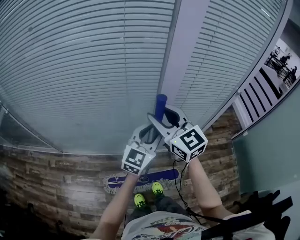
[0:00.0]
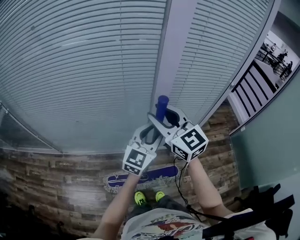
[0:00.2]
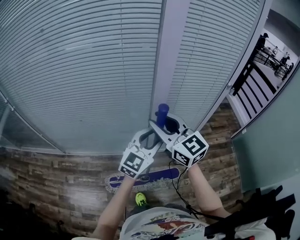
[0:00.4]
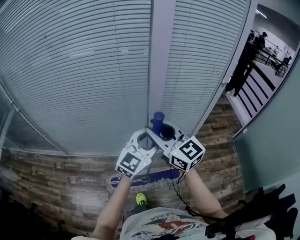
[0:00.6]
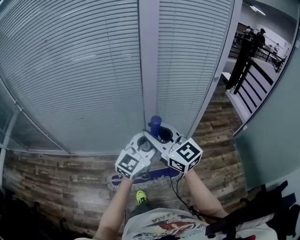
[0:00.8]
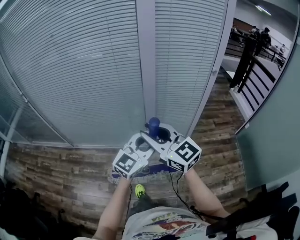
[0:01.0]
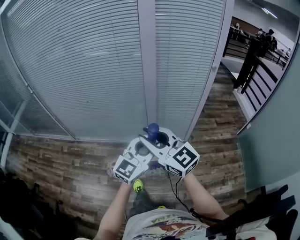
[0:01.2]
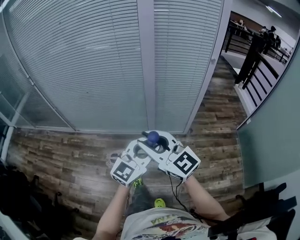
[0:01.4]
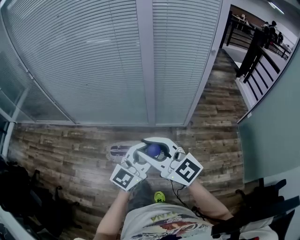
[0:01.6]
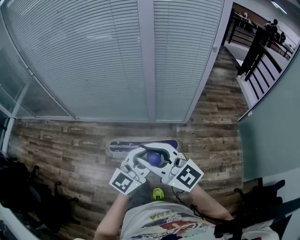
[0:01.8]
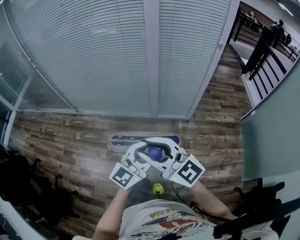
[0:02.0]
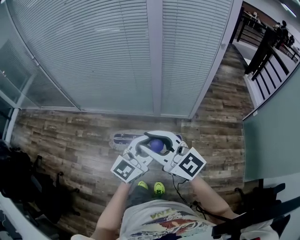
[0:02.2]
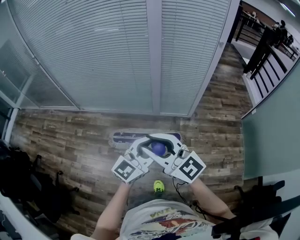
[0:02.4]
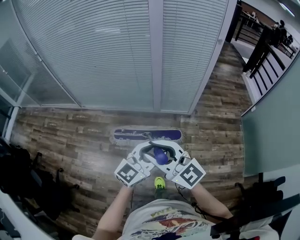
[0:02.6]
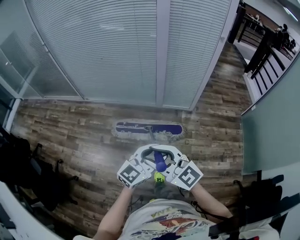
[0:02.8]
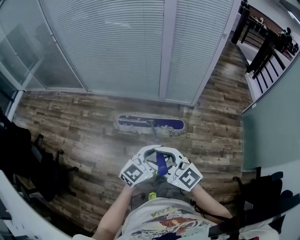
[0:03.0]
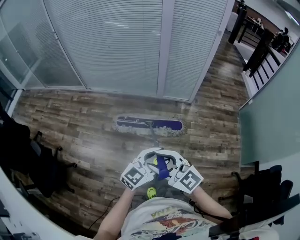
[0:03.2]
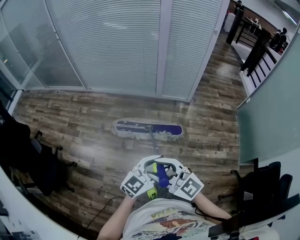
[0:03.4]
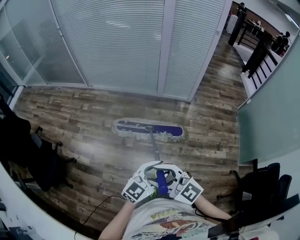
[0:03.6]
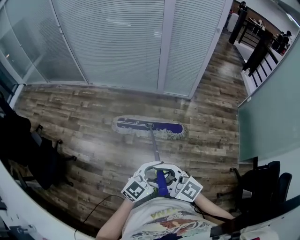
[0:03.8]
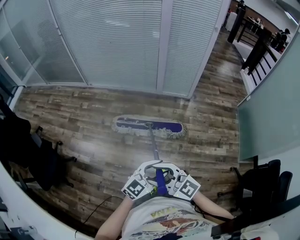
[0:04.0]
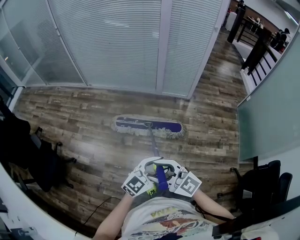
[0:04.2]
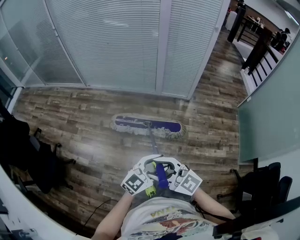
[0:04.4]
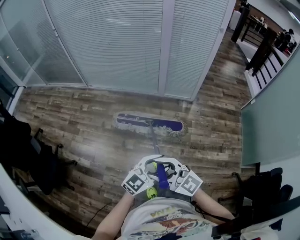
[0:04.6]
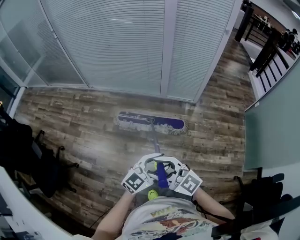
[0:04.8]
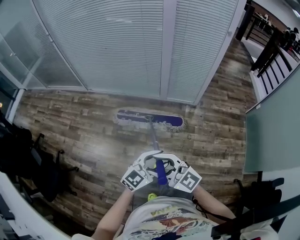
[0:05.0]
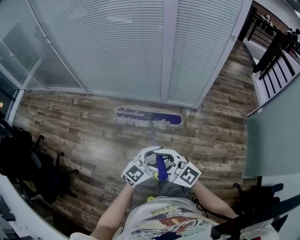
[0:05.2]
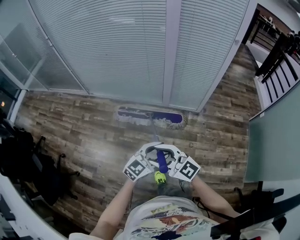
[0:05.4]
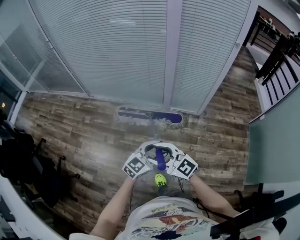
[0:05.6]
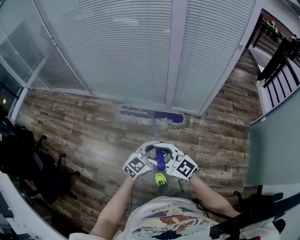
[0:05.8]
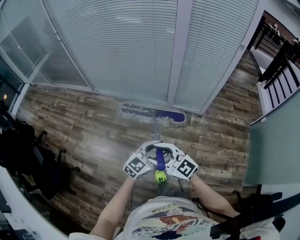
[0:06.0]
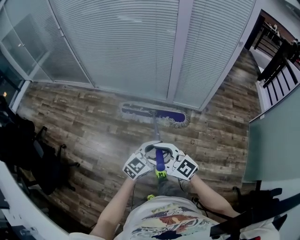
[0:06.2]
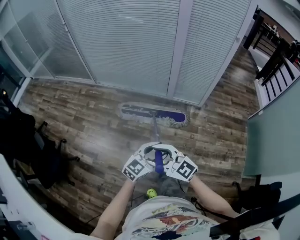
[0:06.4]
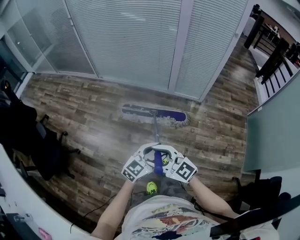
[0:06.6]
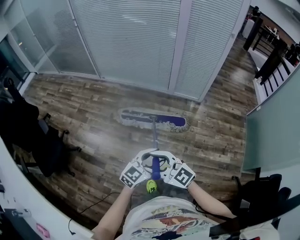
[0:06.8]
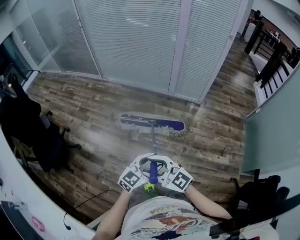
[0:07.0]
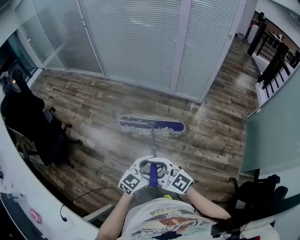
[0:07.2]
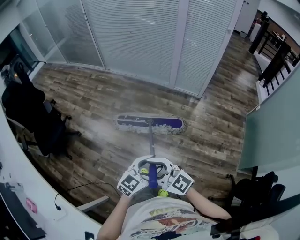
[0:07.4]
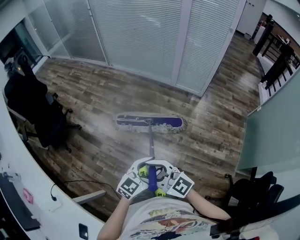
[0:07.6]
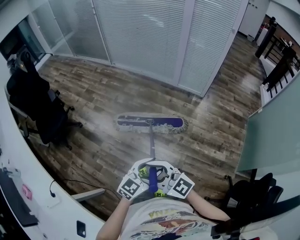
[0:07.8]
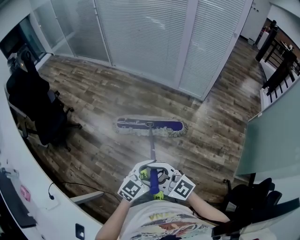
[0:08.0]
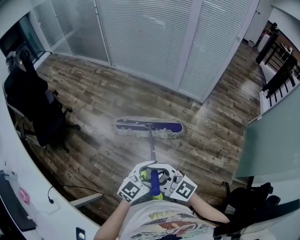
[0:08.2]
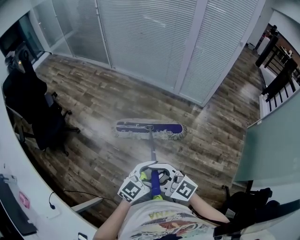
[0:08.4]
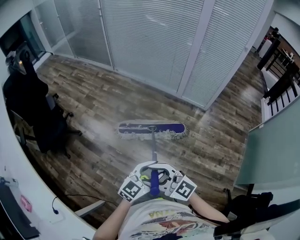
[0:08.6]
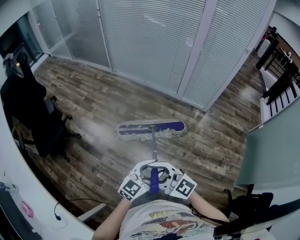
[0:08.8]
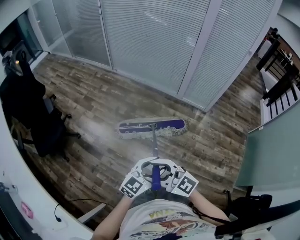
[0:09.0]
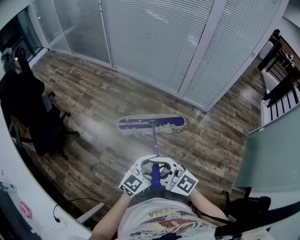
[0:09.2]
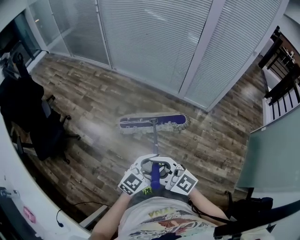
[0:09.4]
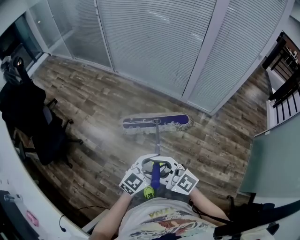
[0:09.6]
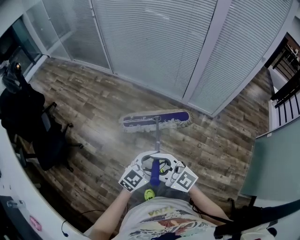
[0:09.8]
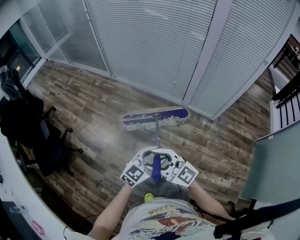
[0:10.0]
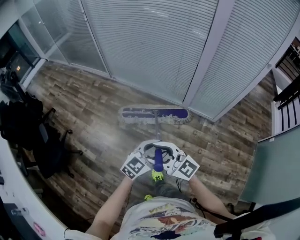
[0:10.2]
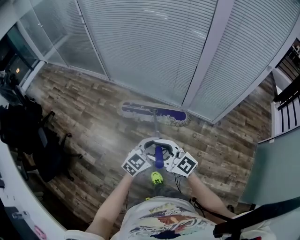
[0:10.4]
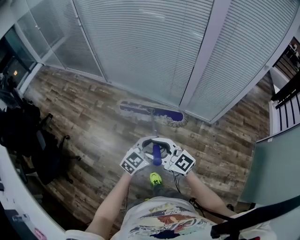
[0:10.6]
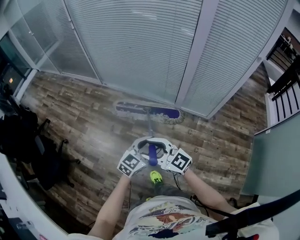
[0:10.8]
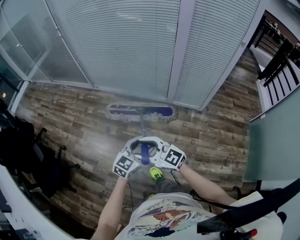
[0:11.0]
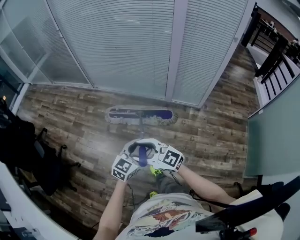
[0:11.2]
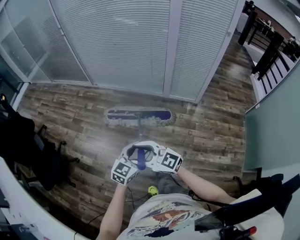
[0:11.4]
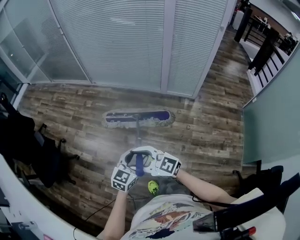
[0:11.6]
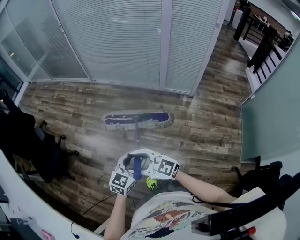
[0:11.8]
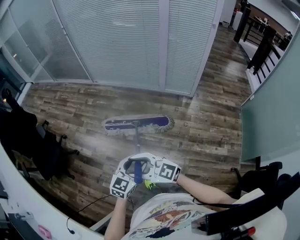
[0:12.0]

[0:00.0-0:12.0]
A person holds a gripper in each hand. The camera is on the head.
0:00.0 to 0:01.6: The pair of grippers is taken backward, approximately 50 cm. The right gripper rotates roughly 30 degrees.
0:01.6 to 0:03.0: The left gripper shifts some 30 cm backward, while the right gripper shifts roughly 35 cm backward and downward.
0:03.0 to 0:04.4: Both grippers travel together backward, approximately 15 cm.
0:04.4 to 0:06.0: Both grippers travel together forward, roughly 30 cm.
0:06.0 to 0:07.6: Both grippers are carried backward, some 60 cm.
0:07.6 to 0:09.0: Both grippers move forward, roughly 20 cm.
0:09.0 to 0:10.4: The pair of grippers is taken forward, about 40 cm.
0:10.4 to 0:12.0: The pair of grippers is taken backward, about 50 cm.

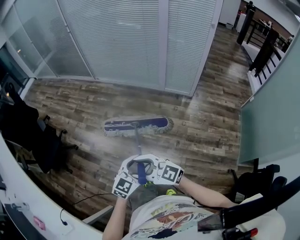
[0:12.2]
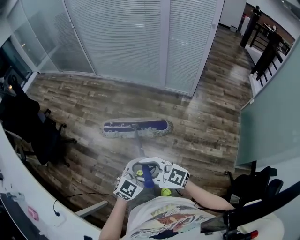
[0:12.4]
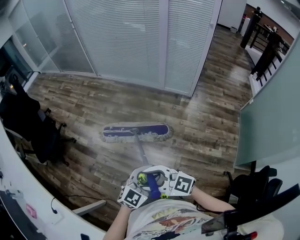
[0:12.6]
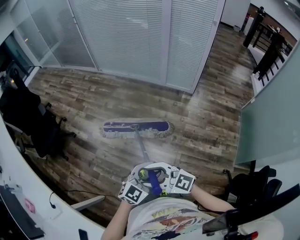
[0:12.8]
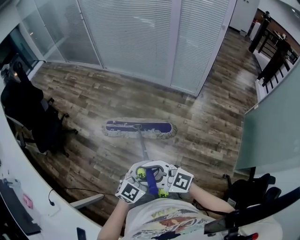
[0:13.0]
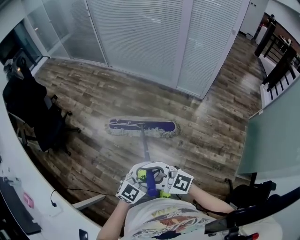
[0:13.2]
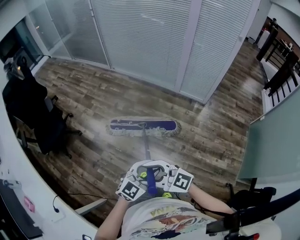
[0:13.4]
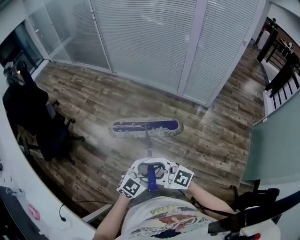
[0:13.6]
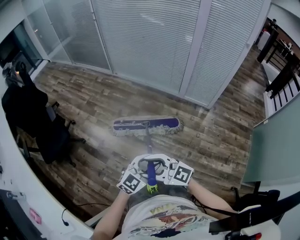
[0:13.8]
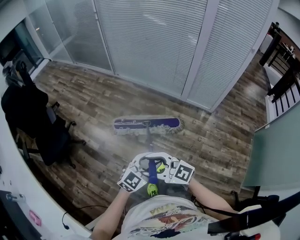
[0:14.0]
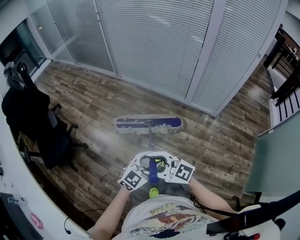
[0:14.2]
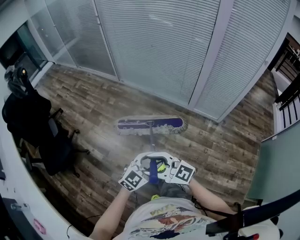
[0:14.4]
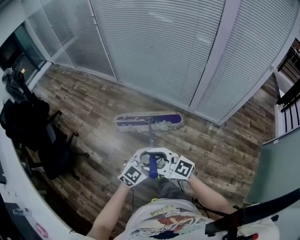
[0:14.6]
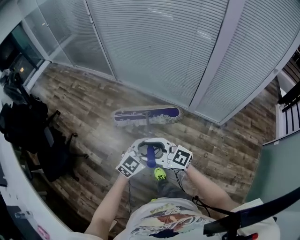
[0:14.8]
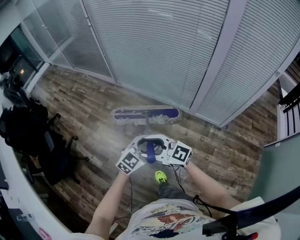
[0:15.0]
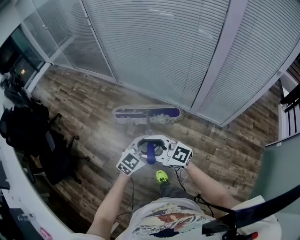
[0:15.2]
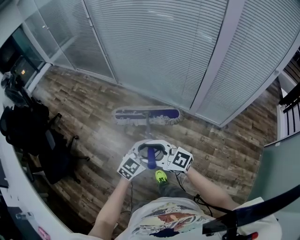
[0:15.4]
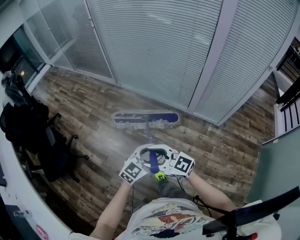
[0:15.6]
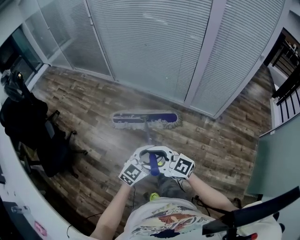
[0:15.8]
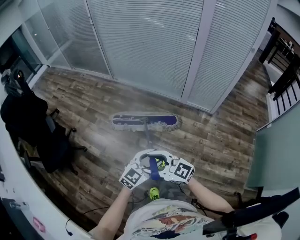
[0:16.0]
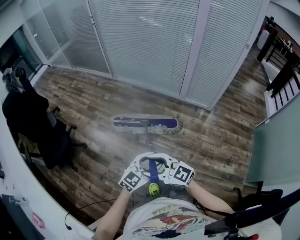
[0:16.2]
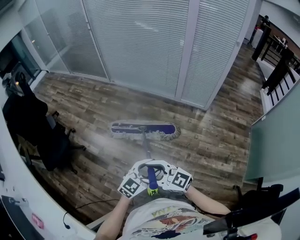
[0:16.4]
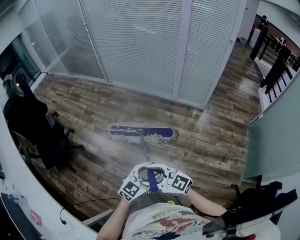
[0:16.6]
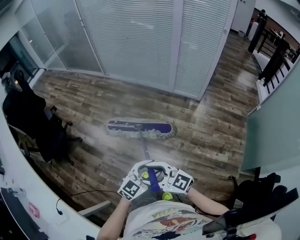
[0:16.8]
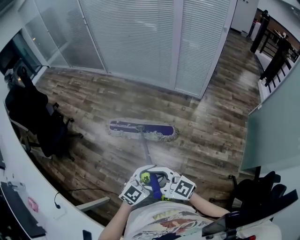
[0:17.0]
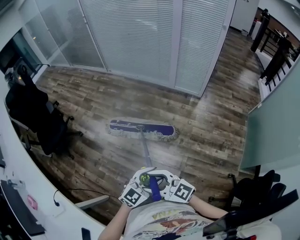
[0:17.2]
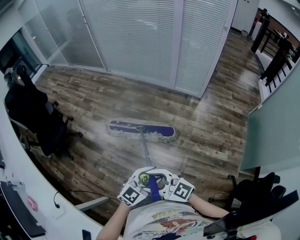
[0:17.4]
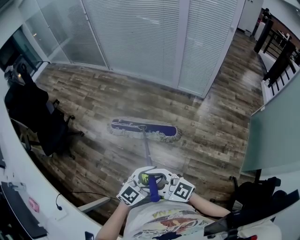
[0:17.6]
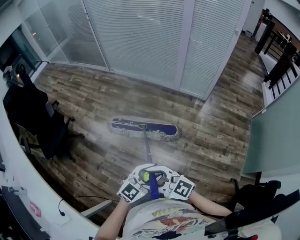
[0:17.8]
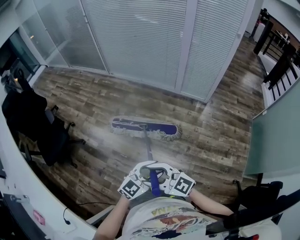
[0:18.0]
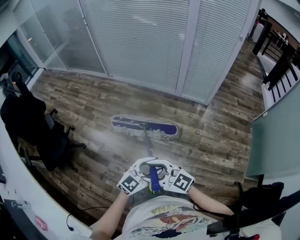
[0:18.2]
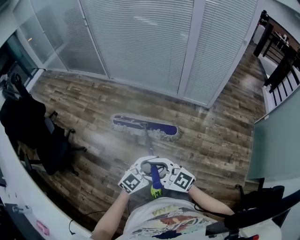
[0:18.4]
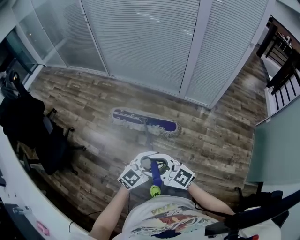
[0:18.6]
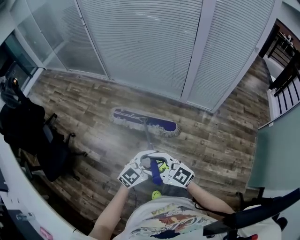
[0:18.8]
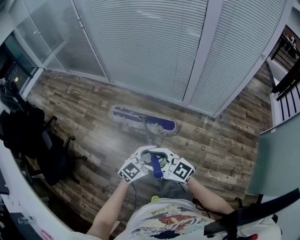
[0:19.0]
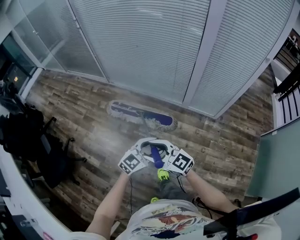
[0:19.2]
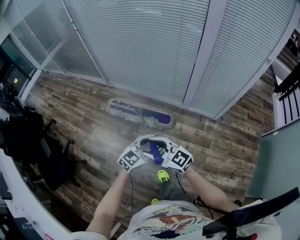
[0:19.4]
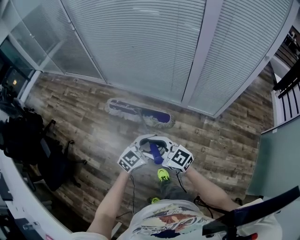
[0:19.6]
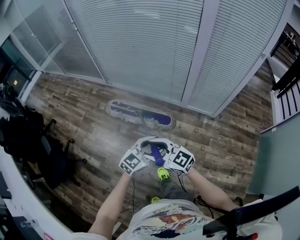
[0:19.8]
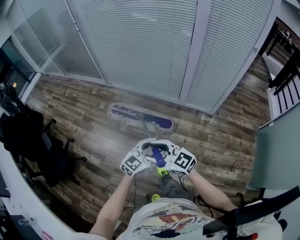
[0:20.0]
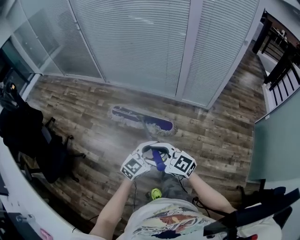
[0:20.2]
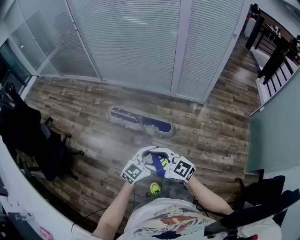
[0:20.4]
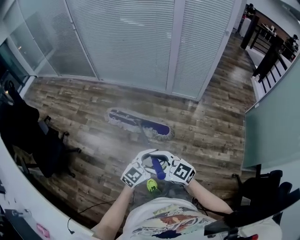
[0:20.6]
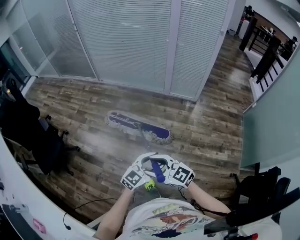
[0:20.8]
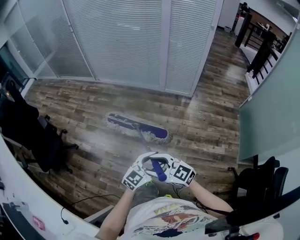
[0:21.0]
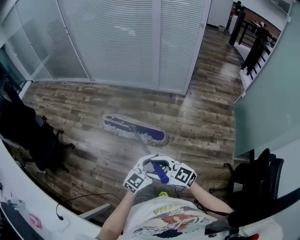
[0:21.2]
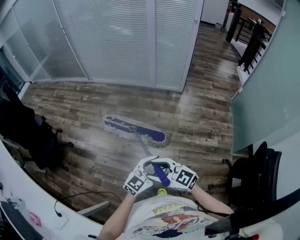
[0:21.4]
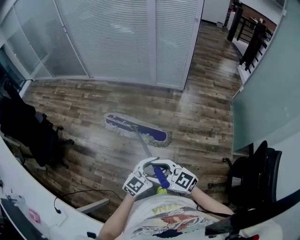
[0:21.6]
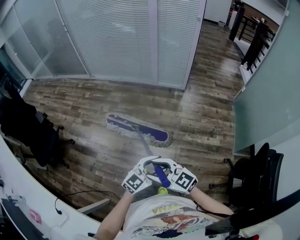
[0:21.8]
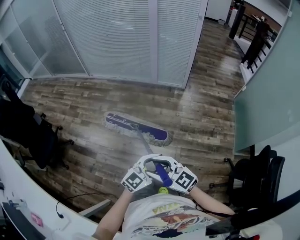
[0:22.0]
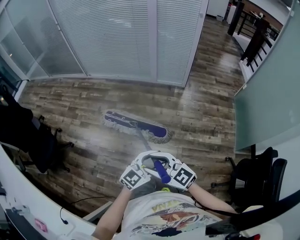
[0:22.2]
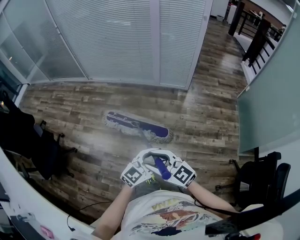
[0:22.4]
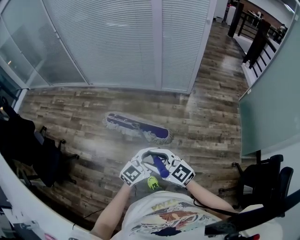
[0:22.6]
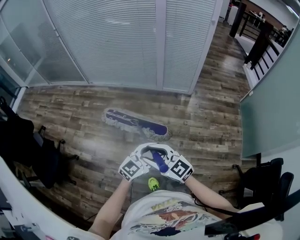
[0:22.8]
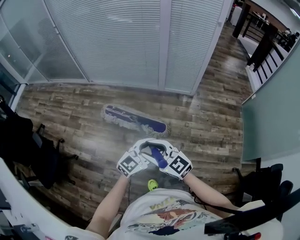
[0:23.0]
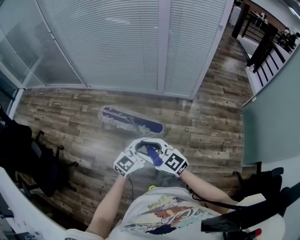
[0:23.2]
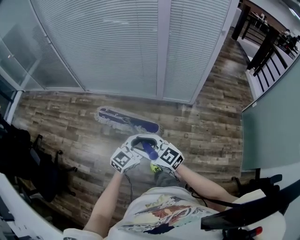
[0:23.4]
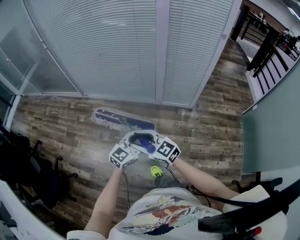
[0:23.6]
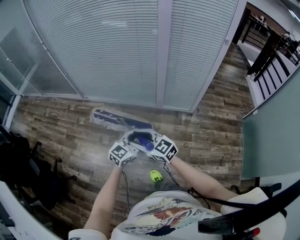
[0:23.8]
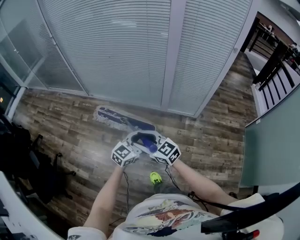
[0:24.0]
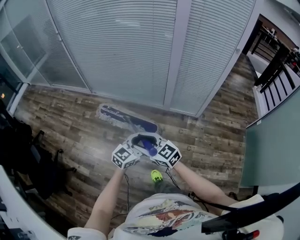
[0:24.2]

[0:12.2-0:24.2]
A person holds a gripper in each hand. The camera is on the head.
0:12.2 to 0:13.8: The left gripper moves approximately 15 cm, while the right gripper moves approximately 15 cm.
0:13.8 to 0:15.2: Both grippers are carried approximately 50 cm.
0:15.2 to 0:16.6: Both grippers are carried backward, some 60 cm.
0:18.2 to 0:19.8: The two grippers travel together, roughly 40 cm.
0:19.8 to 0:21.2: The pair of grippers is taken backward, some 60 cm.
0:21.2 to 0:22.6: The grippers both shift forward by some 20 cm.
0:22.6 to 0:24.2: The two grippers travel together, forward, approximately 40 cm.
